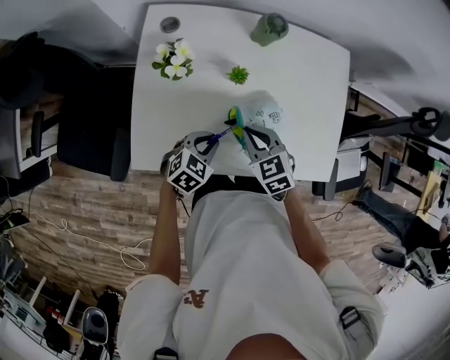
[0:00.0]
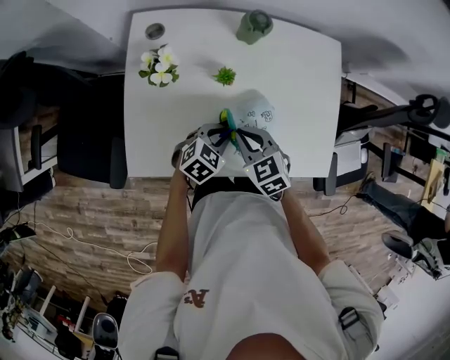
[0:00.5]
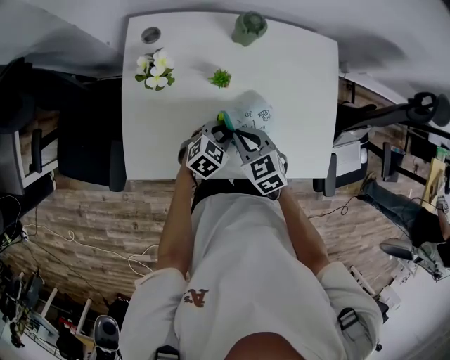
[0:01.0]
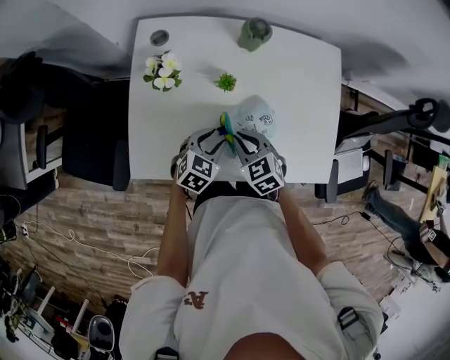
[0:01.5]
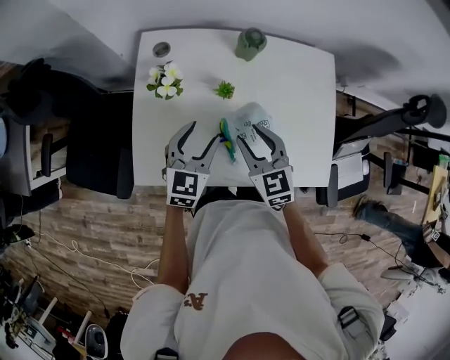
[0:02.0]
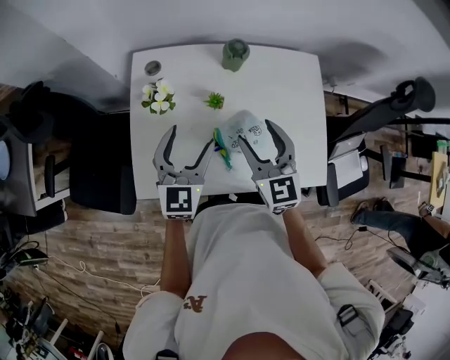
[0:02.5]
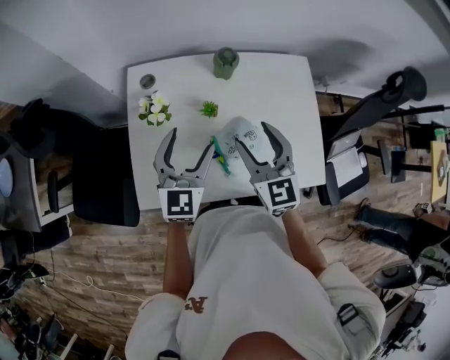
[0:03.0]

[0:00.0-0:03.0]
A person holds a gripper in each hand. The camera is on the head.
0:01.5 to 0:03.0: Both grippers travel together upward, about 20 cm. The right gripper tilts its fingers some 40 degrees upward, and opens. Meanwhile the left gripper tilts its fingers about 30 degrees upward, and opens its fingers.

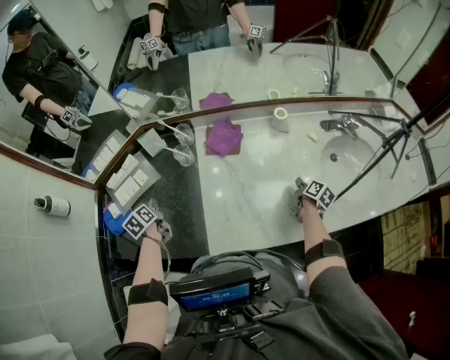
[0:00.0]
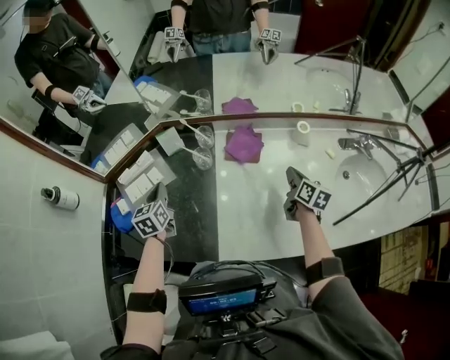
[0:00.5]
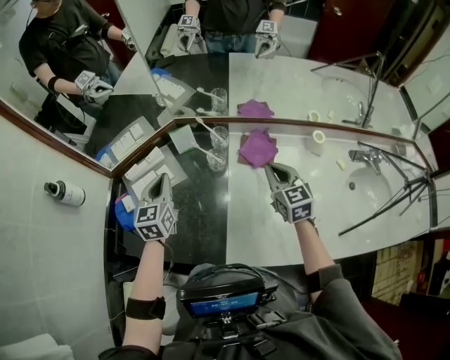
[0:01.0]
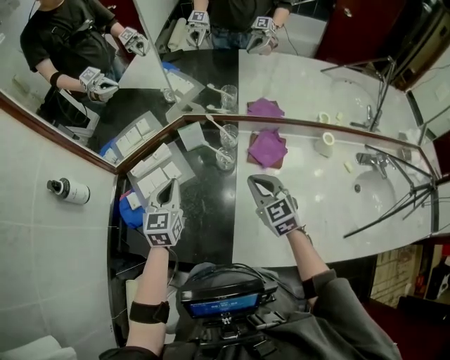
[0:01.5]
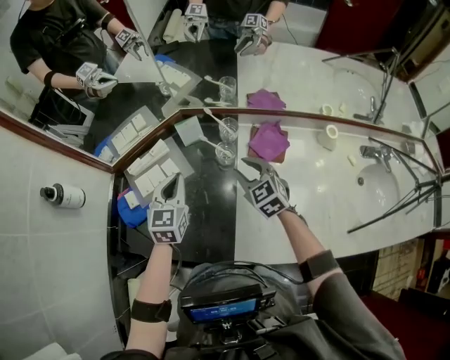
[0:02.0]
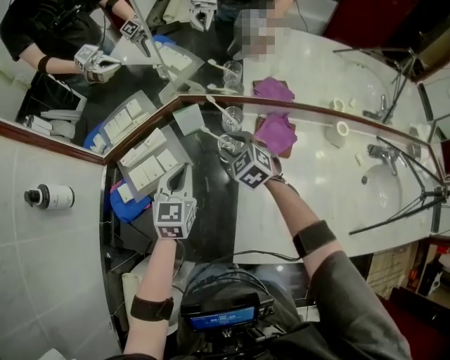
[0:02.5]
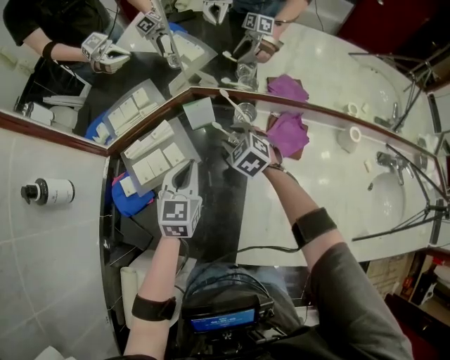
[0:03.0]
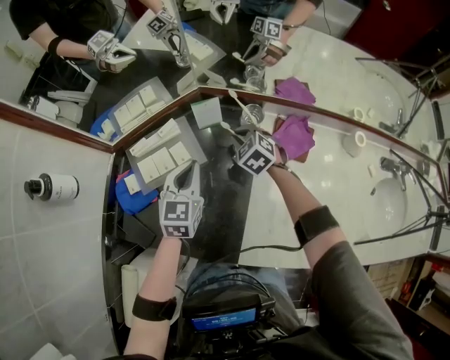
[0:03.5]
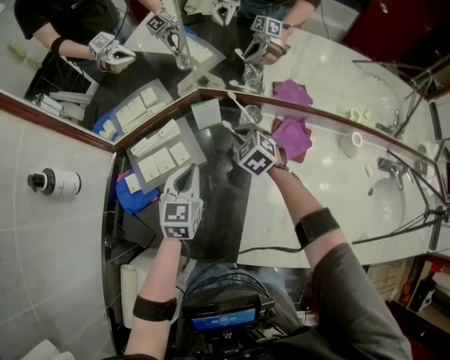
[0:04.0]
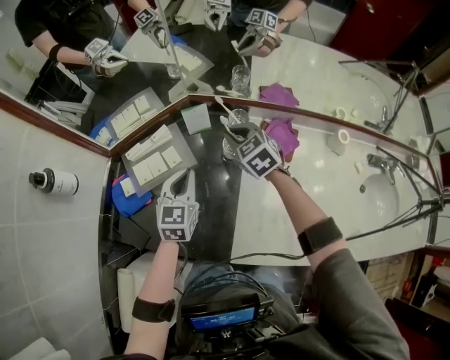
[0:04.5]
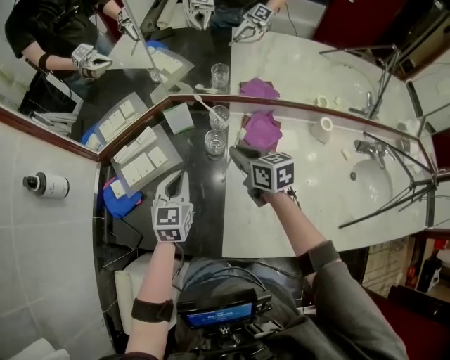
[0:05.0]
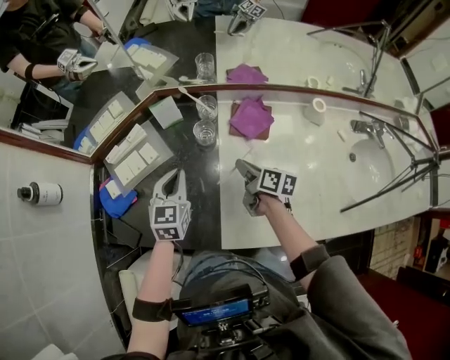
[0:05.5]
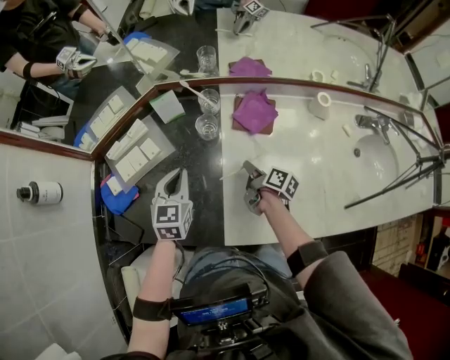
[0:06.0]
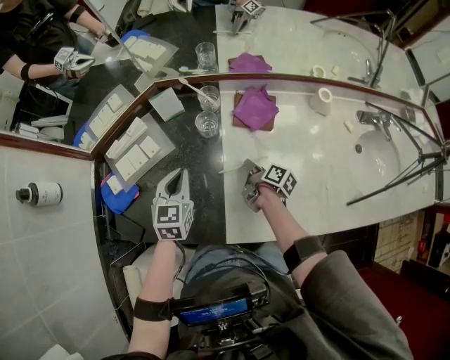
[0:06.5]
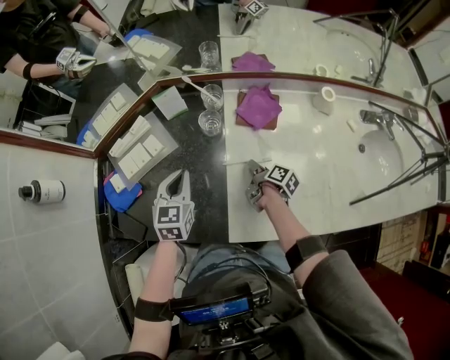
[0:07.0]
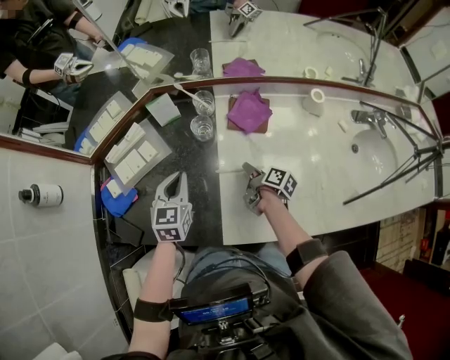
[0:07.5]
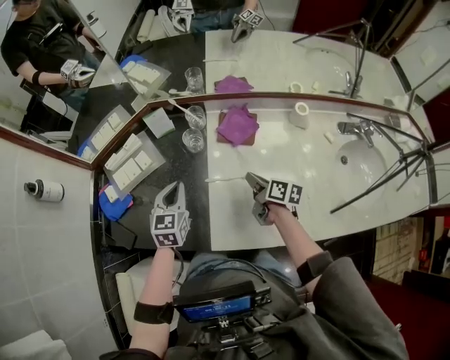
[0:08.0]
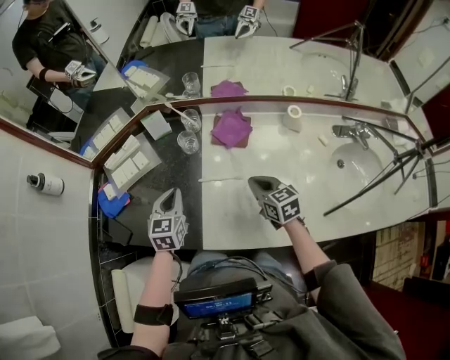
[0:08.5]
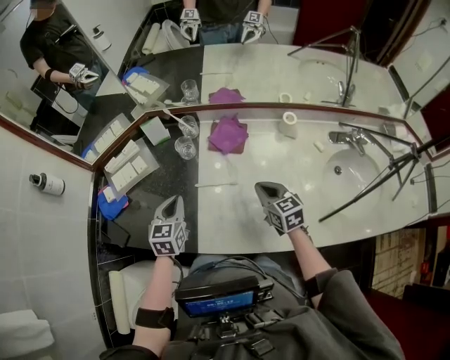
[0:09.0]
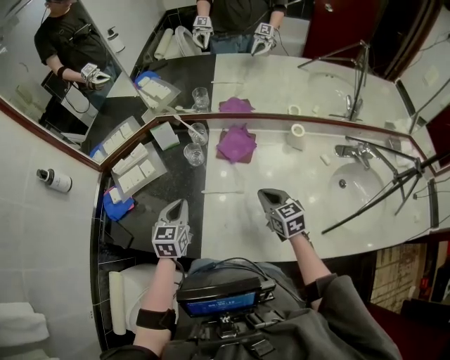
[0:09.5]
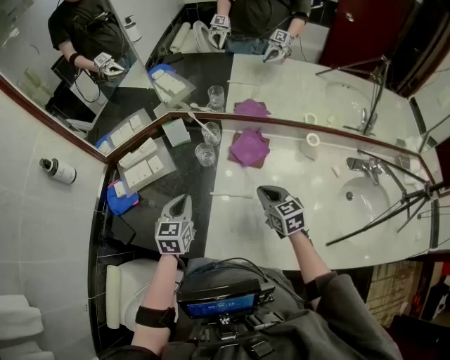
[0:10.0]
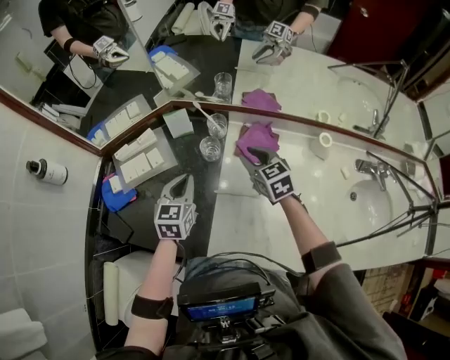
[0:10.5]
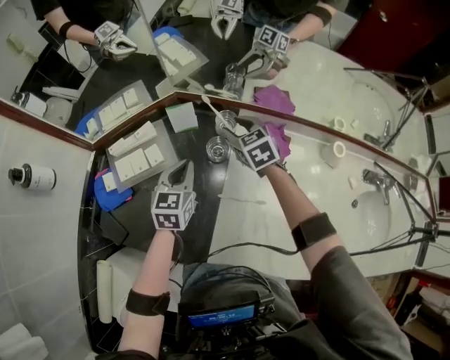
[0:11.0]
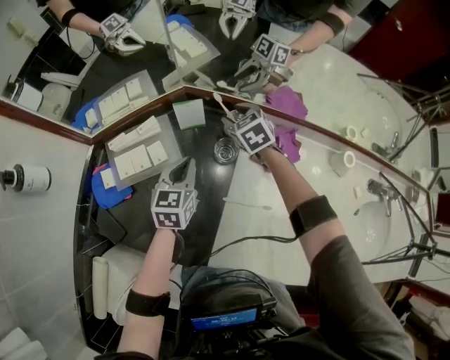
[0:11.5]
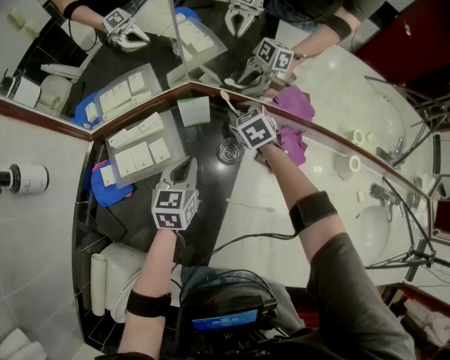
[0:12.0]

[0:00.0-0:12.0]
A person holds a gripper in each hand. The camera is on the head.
0:00.0 to 0:02.0: The left gripper travels upward and forward by roughly 15 cm, and twists some 40 degrees clockwise, seen from behind. The right gripper is displaced to the left and forward by some 50 cm, twists about 90 degrees counterclockwise, seen from behind, and opens its fingers.
0:02.0 to 0:04.0: The right gripper shifts approximately 15 cm forward, downward and to the left, swivels about 20 degrees, and closes.
0:04.0 to 0:06.0: The left gripper is displaced backward and to the right by roughly 10 cm. Meanwhile the right gripper is displaced backward and to the right by approximately 25 cm, and twists roughly 100 degrees clockwise, seen from behind.
0:06.0 to 0:08.0: The left gripper changes place by approximately 5 cm; the right gripper travels upward and to the right by approximately 10 cm, and rotates approximately 20 degrees.
0:08.0 to 0:10.0: The right gripper twists approximately 50 degrees counterclockwise, seen from behind.
0:10.0 to 0:12.0: The left gripper travels forward by some 15 cm. The right gripper shifts some 40 cm forward and to the left, swivels some 30 degrees, and opens its fingers.

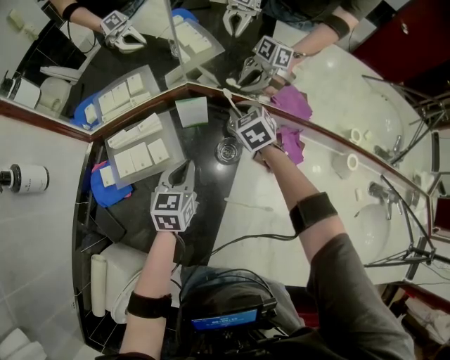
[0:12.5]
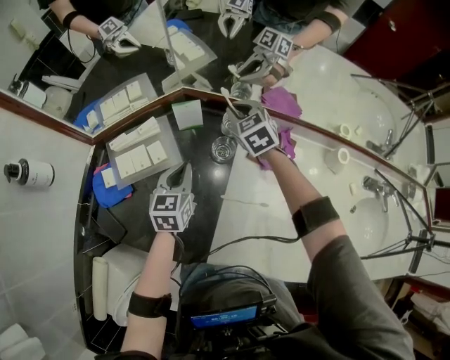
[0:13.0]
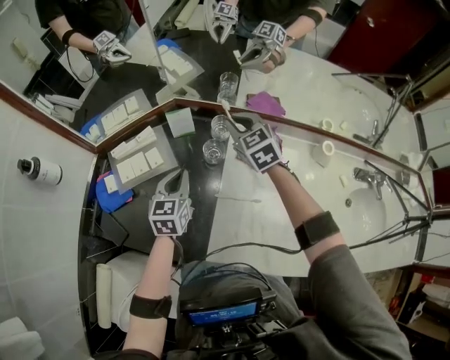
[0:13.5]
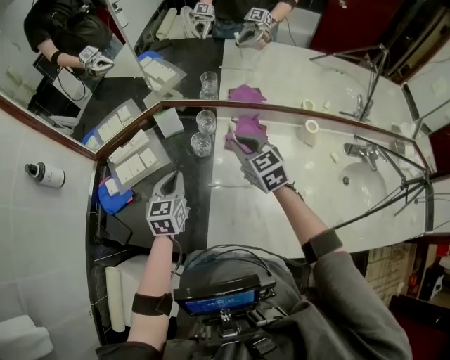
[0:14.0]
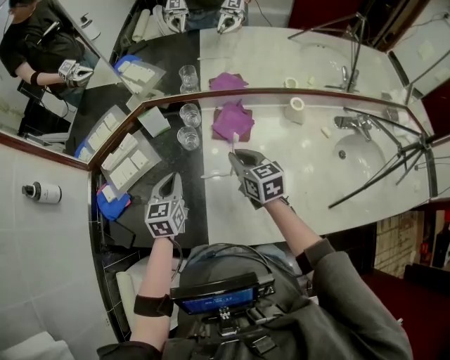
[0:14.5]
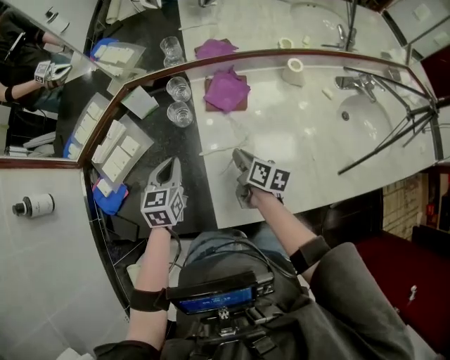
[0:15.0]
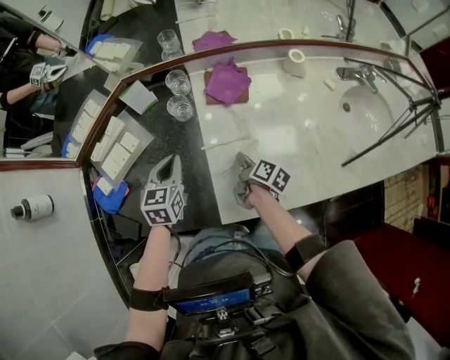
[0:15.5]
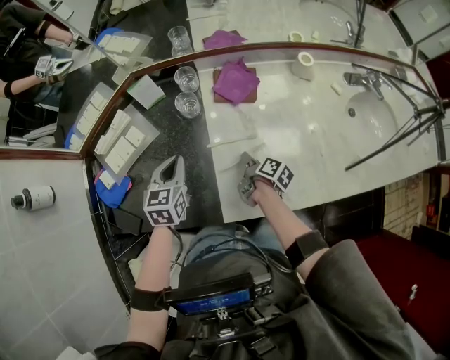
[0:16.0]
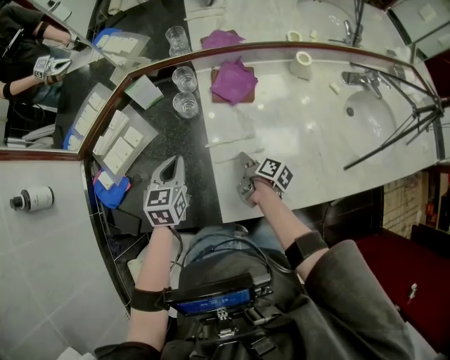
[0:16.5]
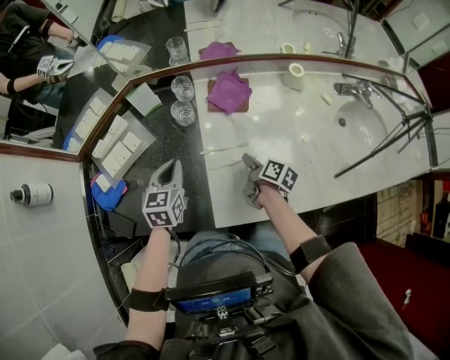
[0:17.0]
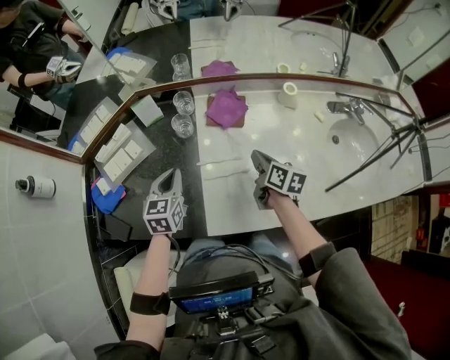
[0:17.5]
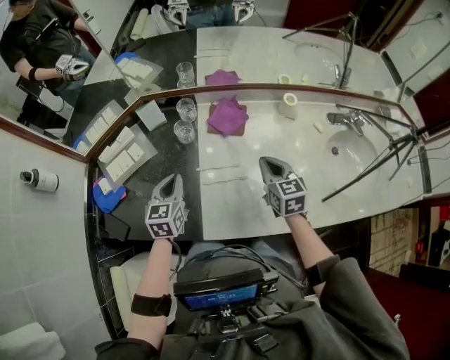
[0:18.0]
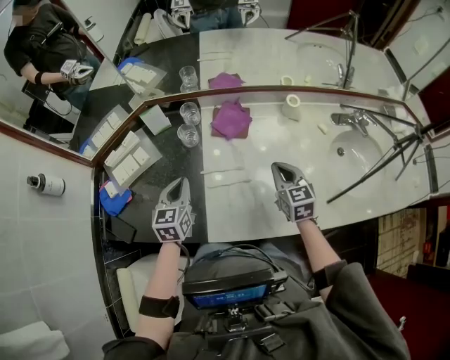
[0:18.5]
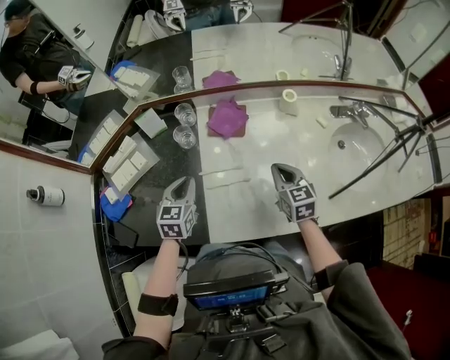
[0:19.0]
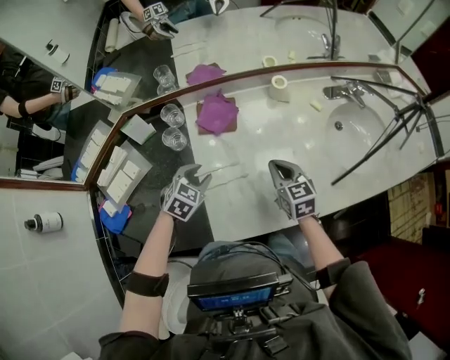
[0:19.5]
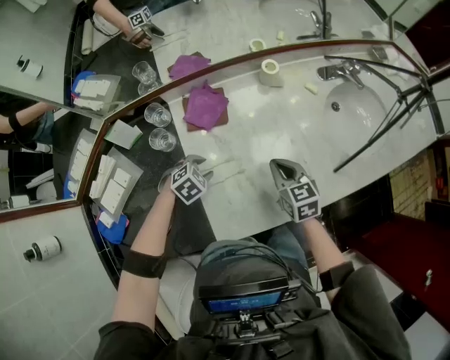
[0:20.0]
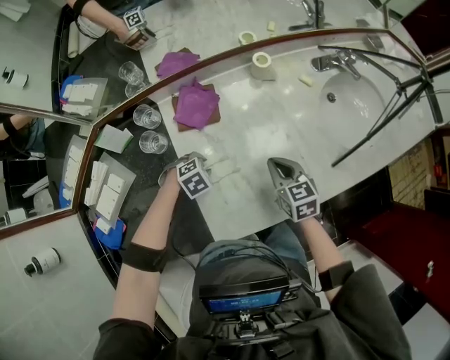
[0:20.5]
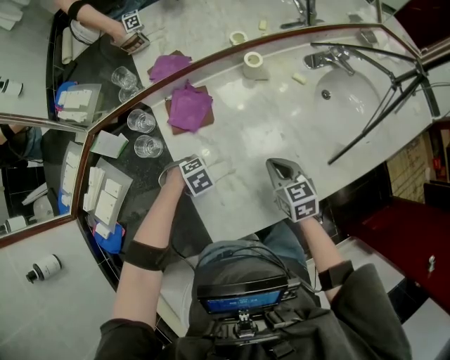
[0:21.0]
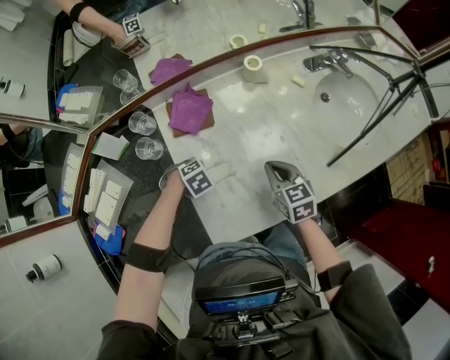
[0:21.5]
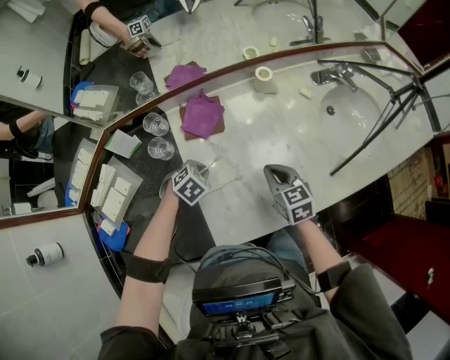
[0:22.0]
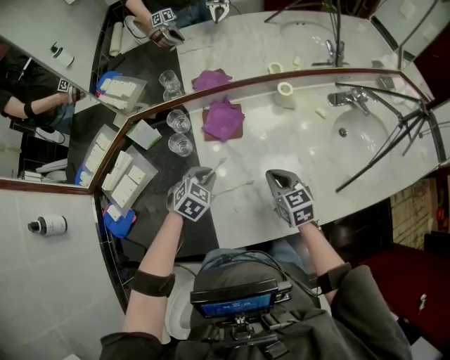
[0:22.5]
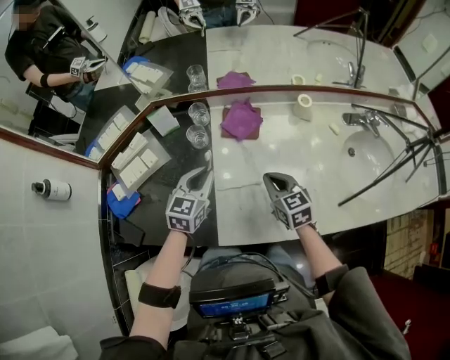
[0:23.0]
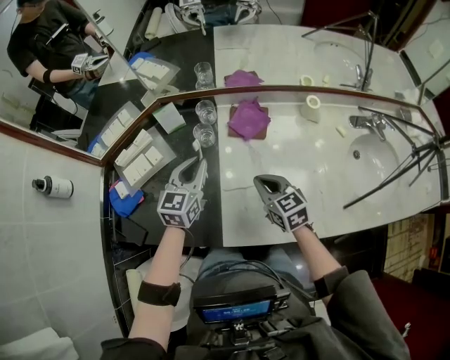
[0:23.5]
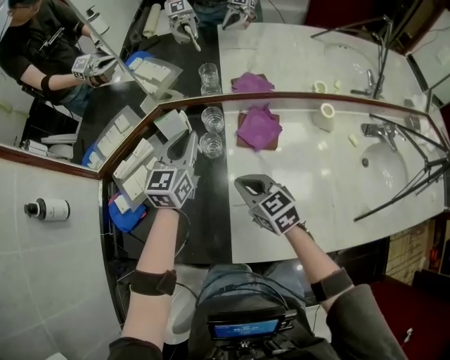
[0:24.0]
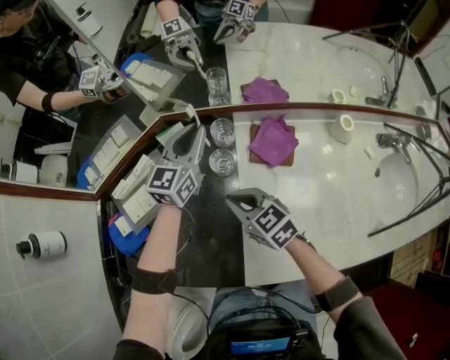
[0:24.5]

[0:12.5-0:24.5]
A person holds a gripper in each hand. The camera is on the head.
0:12.5 to 0:14.5: The left gripper travels backward, upward and to the right by roughly 15 cm, while the right gripper travels backward by about 30 cm, and turns by roughly 40 degrees.
0:14.5 to 0:16.5: The right gripper goes approximately 20 cm downward and backward, and rolls clockwise, seen from behind, by about 70 degrees.
0:16.5 to 0:18.5: The right gripper moves upward and to the right, roughly 25 cm, twists about 80 degrees counterclockwise, seen from behind, and closes up; the left gripper moves about 5 cm.
0:18.5 to 0:20.5: The left gripper moves downward, some 20 cm, angles its fingers downward, by roughly 50 degrees, and opens, while the right gripper moves downward, approximately 10 cm.
0:20.5 to 0:22.5: The right gripper shifts by about 5 cm. Meanwhile the left gripper moves upward, some 15 cm, swivels approximately 40 degrees, and closes up.
0:22.5 to 0:24.5: The left gripper shifts by about 30 cm, and angles its fingers upward, by some 50 degrees. The right gripper ends up about 30 cm from where it was, and swivels roughly 30 degrees.
